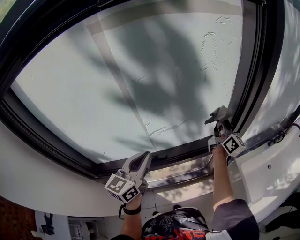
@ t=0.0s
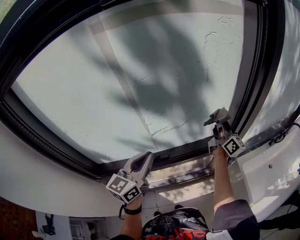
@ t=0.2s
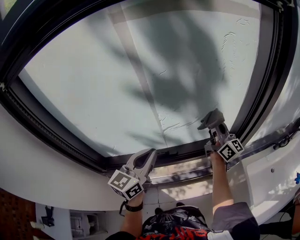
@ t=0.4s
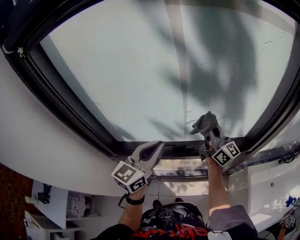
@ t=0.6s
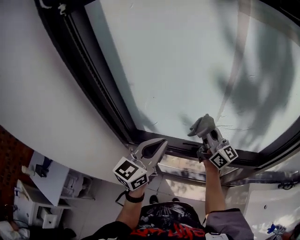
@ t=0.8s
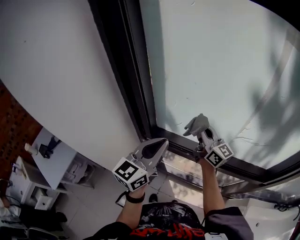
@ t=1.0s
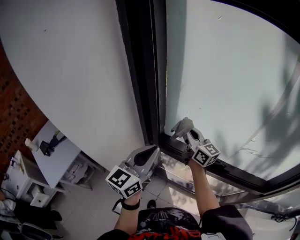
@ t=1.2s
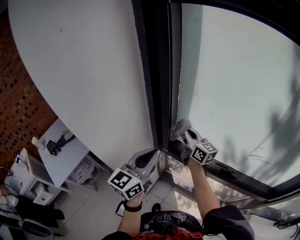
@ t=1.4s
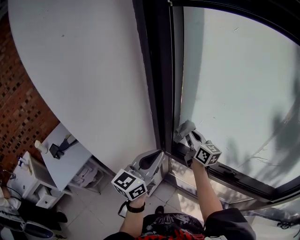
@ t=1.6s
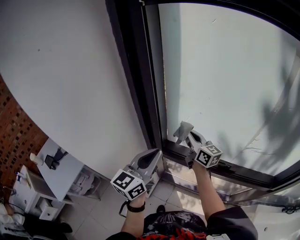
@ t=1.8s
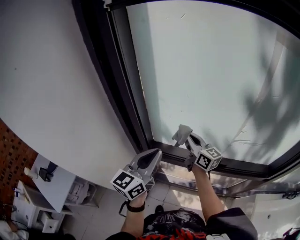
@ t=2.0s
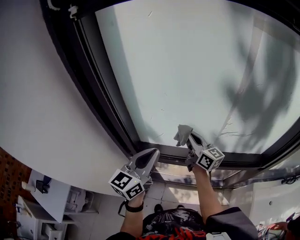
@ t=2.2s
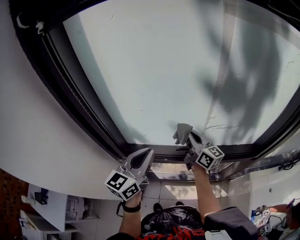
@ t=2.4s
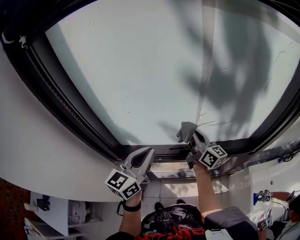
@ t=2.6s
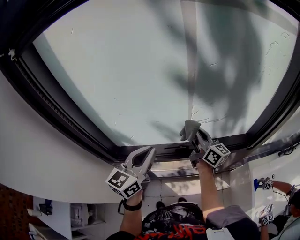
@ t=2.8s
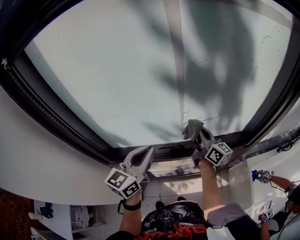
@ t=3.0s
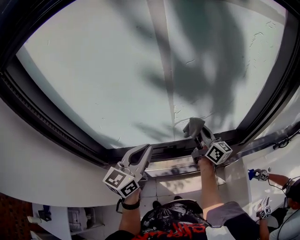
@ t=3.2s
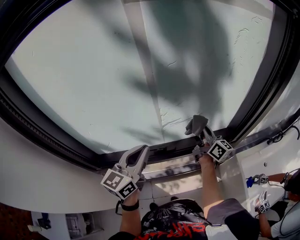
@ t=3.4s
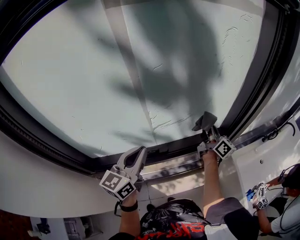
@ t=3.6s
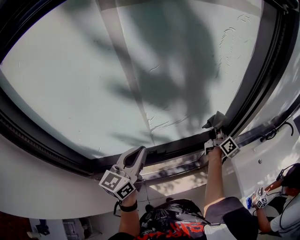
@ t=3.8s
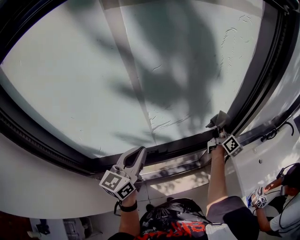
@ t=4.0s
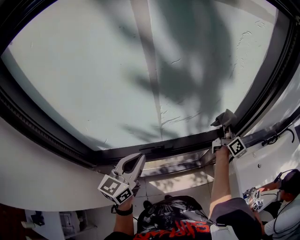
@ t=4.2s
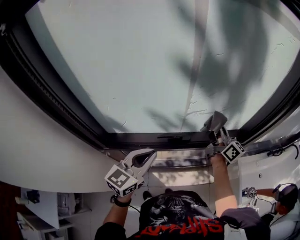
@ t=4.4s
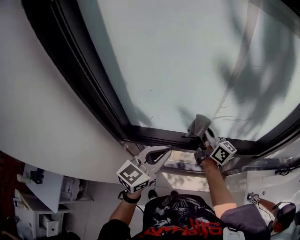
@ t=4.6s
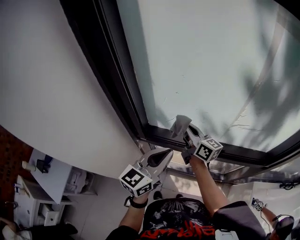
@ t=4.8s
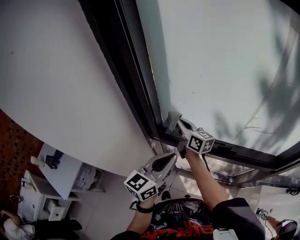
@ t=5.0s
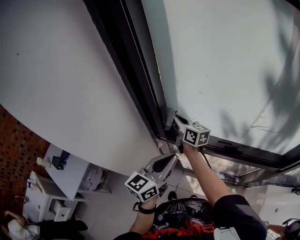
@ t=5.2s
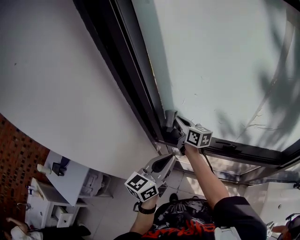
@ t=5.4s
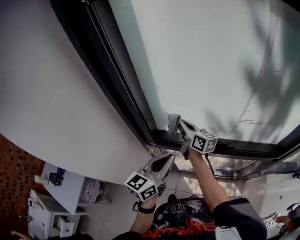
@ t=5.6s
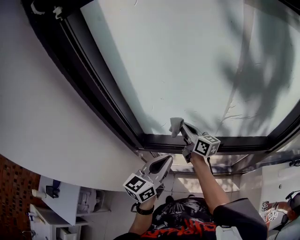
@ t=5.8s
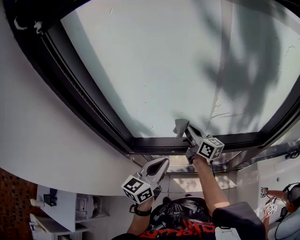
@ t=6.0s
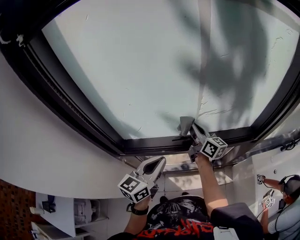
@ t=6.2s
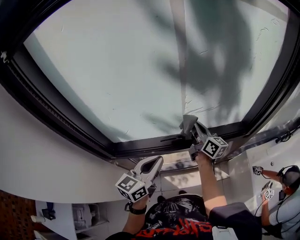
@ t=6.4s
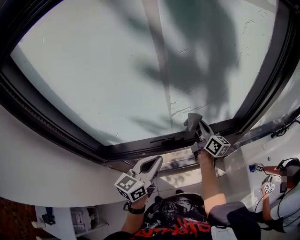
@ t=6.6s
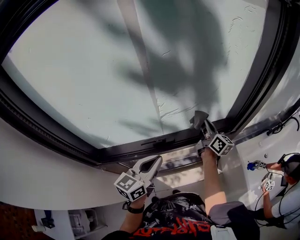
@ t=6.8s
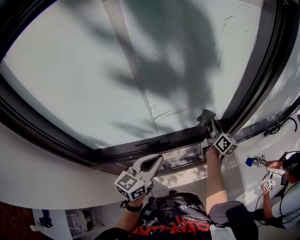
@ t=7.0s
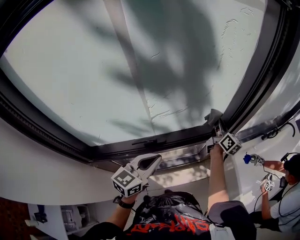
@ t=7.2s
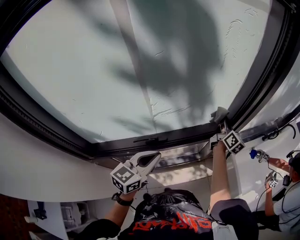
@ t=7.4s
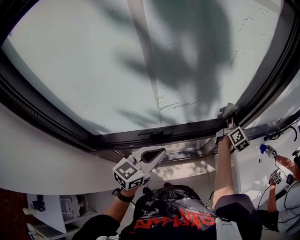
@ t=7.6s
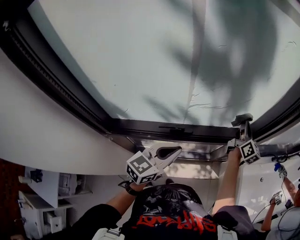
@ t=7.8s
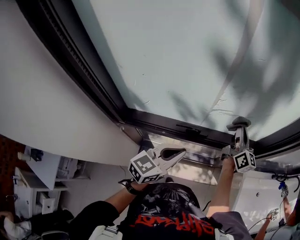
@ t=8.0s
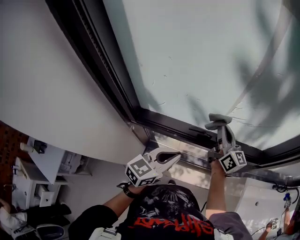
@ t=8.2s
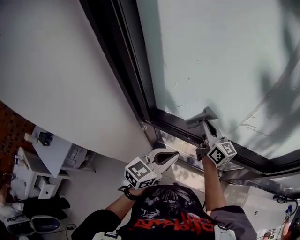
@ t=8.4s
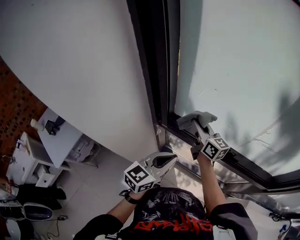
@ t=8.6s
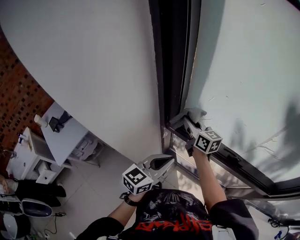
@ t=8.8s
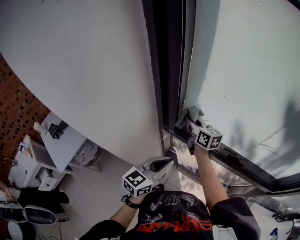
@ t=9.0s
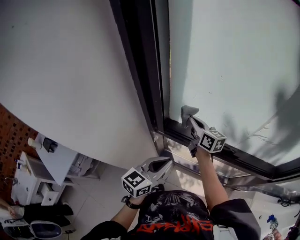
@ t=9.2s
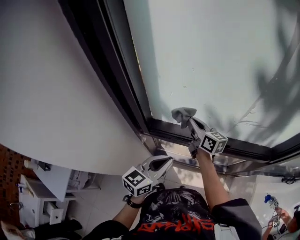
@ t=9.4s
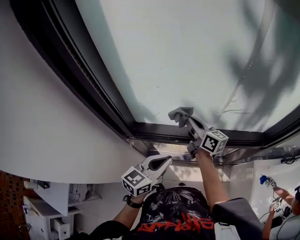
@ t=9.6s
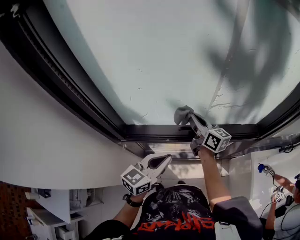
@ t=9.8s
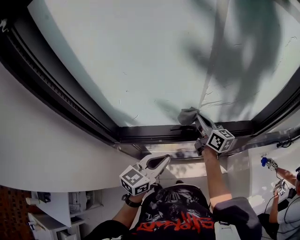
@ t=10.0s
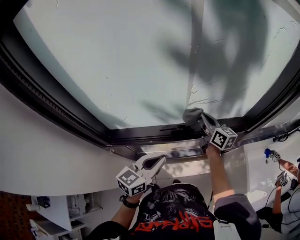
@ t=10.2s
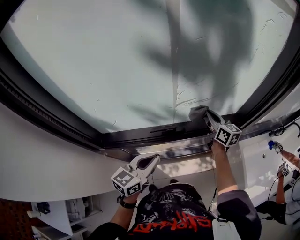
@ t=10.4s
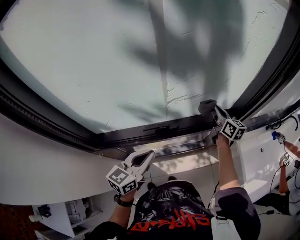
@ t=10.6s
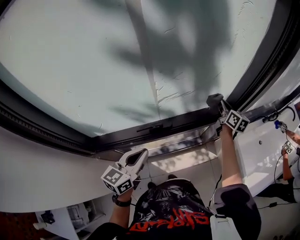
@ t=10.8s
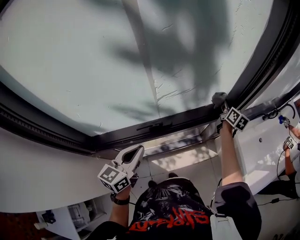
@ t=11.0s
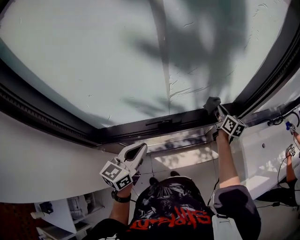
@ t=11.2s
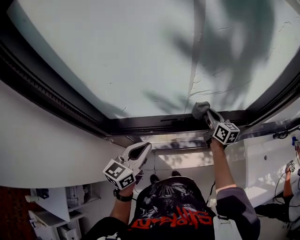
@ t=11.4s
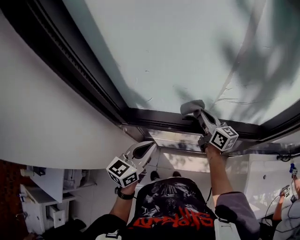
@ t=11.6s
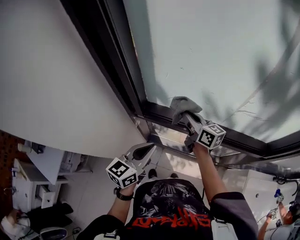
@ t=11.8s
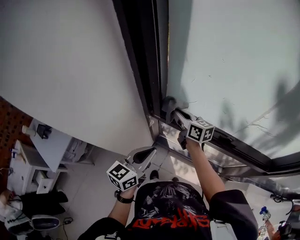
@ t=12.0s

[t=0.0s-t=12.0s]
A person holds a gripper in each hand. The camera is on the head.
t=0.0s to t=1.6s: The right gripper ends up approximately 70 cm from where it was, and rotates some 60 degrees. The left gripper ends up some 40 cm from where it was, and rotates about 40 degrees.
t=1.6s to t=3.0s: The left gripper shifts by some 25 cm, and turns by some 30 degrees. The right gripper moves roughly 40 cm, and rotates some 40 degrees.
t=3.0s to t=4.4s: The right gripper travels to the right and back again, approximately 25 cm each way. Meanwhile the left gripper heads downward, covering about 5 cm.
t=6.0s to t=7.6s: The right gripper moves approximately 50 cm, and swivels some 50 degrees. The left gripper shifts by approximately 20 cm, and changes its angle by about 20 degrees.
t=7.6s to t=9.0s: The right gripper shifts by about 70 cm, and changes its angle by roughly 80 degrees; the left gripper ends up approximately 30 cm from where it was, and turns by roughly 40 degrees.
t=9.0s to t=10.4s: The right gripper moves roughly 50 cm, and swivels about 40 degrees. Meanwhile the left gripper moves roughly 25 cm, and turns by roughly 30 degrees.
t=10.4s to t=12.0s: The right gripper changes place by roughly 50 cm, and rotates some 50 degrees, while the left gripper shifts by roughly 25 cm, and swivels some 40 degrees.

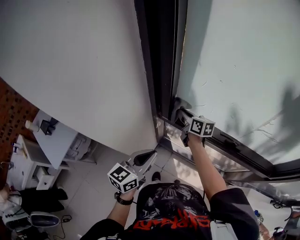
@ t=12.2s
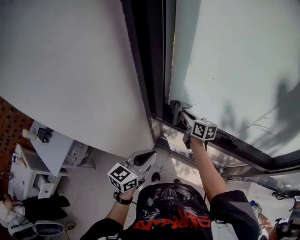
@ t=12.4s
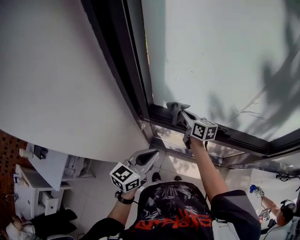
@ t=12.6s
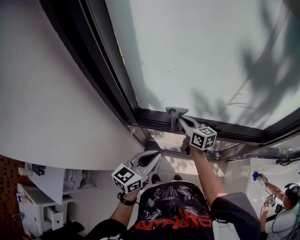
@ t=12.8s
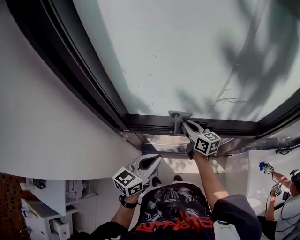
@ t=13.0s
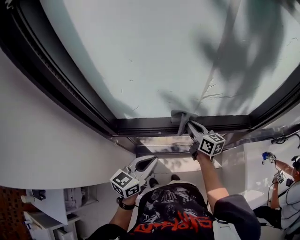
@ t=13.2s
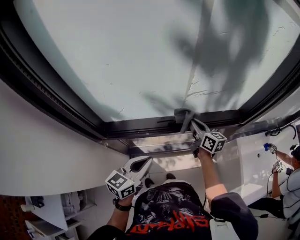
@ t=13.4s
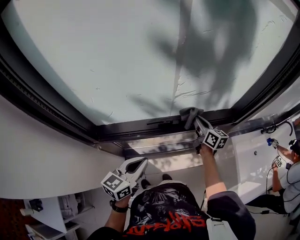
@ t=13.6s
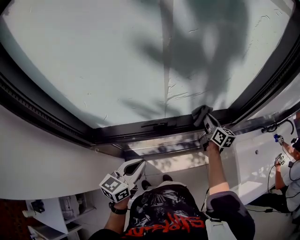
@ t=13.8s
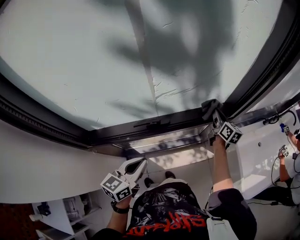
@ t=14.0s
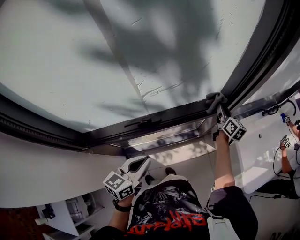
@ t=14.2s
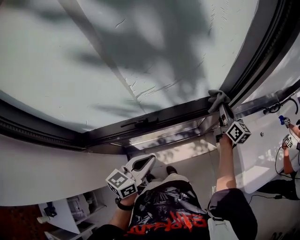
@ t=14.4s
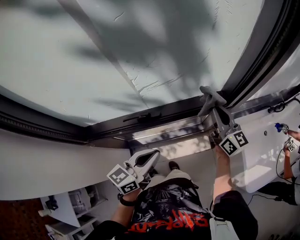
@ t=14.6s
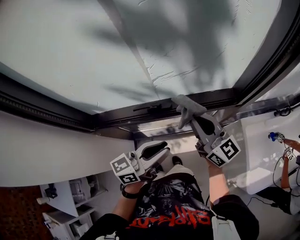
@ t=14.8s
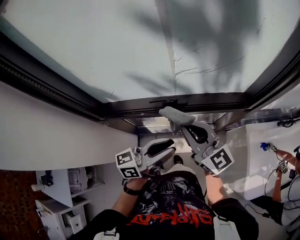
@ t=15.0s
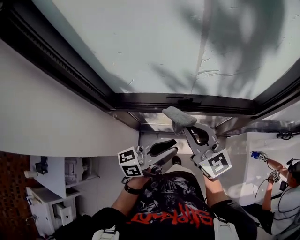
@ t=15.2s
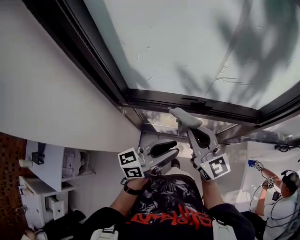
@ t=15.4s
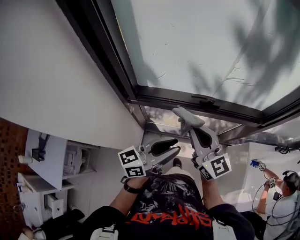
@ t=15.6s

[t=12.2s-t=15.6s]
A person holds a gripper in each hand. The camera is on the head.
t=12.2s to t=13.8s: The right gripper shifts by some 60 cm, and turns by about 50 degrees. The left gripper moves approximately 25 cm, and changes its angle by about 30 degrees.
t=13.8s to t=15.6s: The right gripper goes about 40 cm backward, to the left and upward, and rotates approximately 50 degrees; the left gripper travels backward and upward by approximately 10 cm, reaches approximately 15 cm to the right, then returns, changes its angle by some 30 degrees, and opens up.

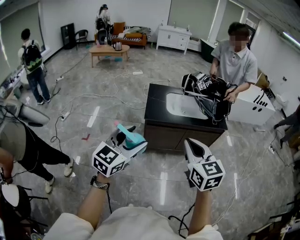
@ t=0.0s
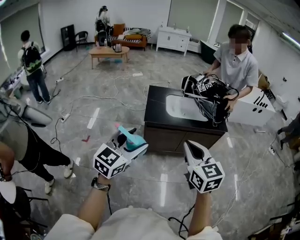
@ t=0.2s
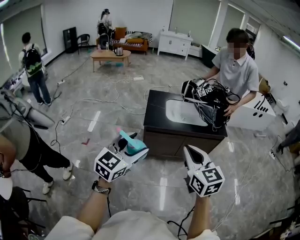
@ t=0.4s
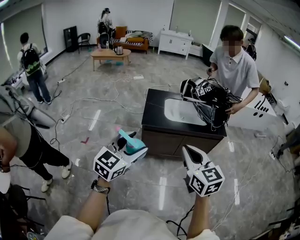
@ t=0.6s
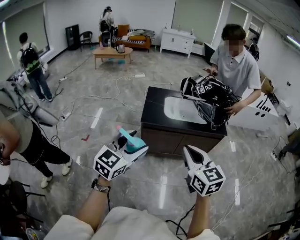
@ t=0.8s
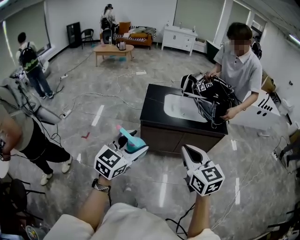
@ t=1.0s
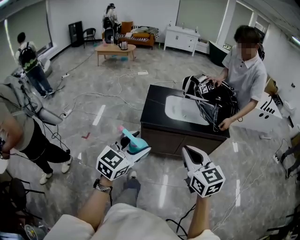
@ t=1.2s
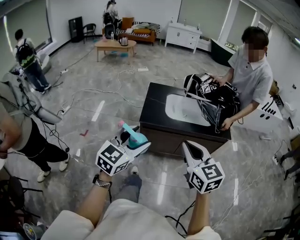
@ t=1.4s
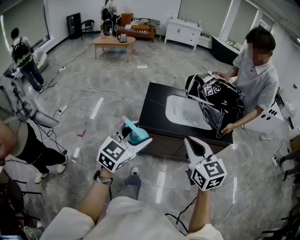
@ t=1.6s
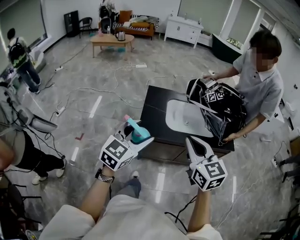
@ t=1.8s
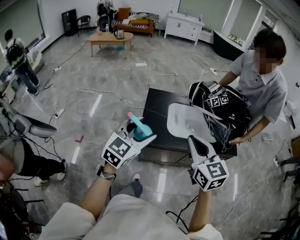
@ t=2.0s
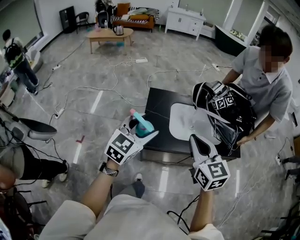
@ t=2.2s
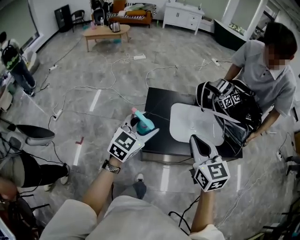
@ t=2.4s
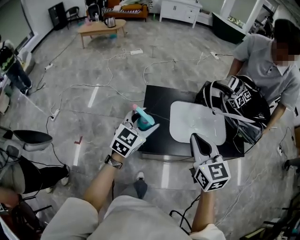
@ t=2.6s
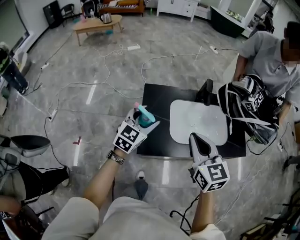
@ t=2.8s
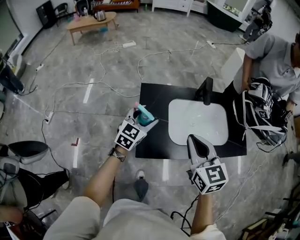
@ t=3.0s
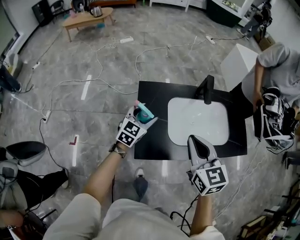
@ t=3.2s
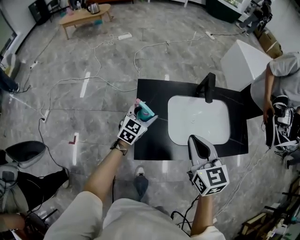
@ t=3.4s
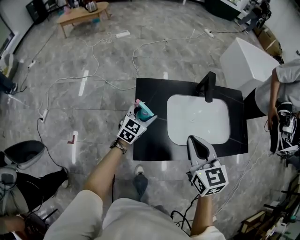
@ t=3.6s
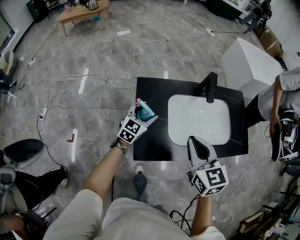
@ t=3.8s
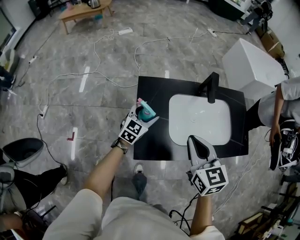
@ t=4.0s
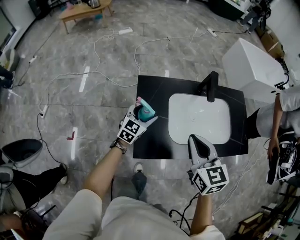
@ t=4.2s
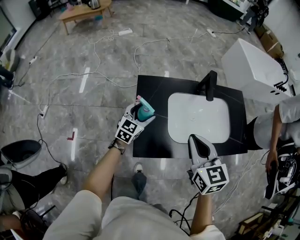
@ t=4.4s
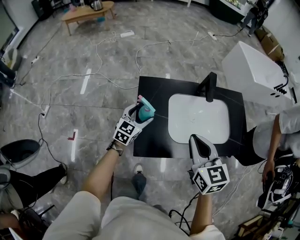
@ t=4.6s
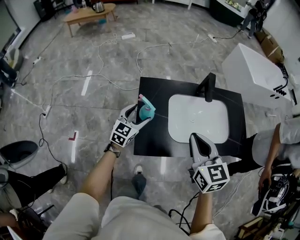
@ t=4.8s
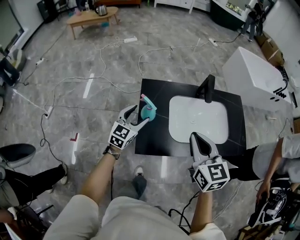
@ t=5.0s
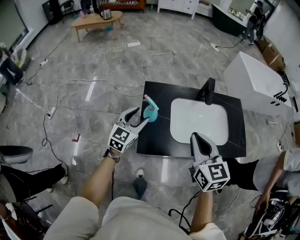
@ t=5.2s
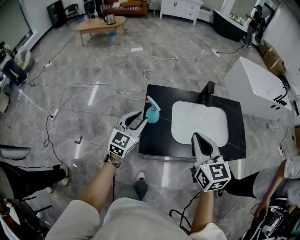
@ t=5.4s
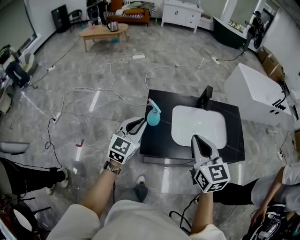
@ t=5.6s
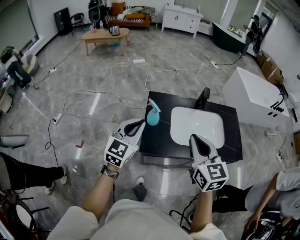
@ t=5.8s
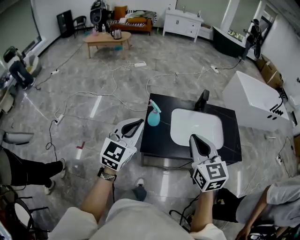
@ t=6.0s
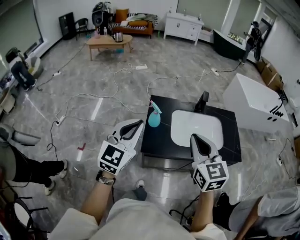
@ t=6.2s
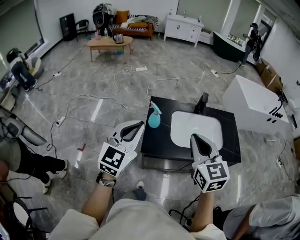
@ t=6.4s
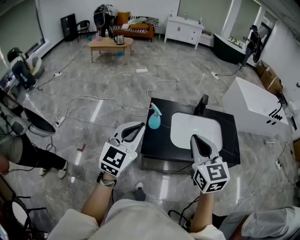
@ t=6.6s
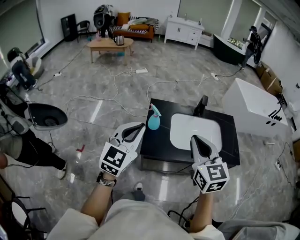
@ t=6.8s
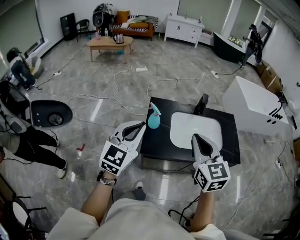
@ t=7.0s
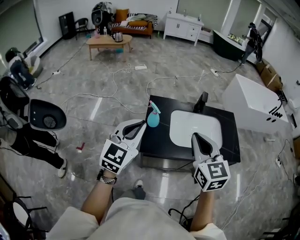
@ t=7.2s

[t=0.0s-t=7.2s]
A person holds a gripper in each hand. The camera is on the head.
t=0.0s to t=1.4s: The right gripper heads forward, covering about 10 cm; the left gripper shifts about 15 cm forward, to the right and downward.
t=1.4s to t=2.8s: The two grippers travel together, forward, about 40 cm.
t=2.8s to t=4.4s: The right gripper travels downward and forward by roughly 10 cm, while the left gripper travels downward and forward by some 20 cm.
t=4.4s to t=5.8s: The left gripper heads upward and backward, covering some 35 cm, and closes. Meanwhile the right gripper heads backward and upward, covering approximately 15 cm.
t=5.8s to t=7.2s: The left gripper goes approximately 10 cm upward and backward.
